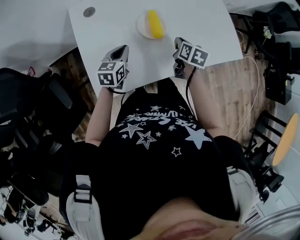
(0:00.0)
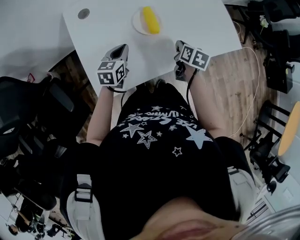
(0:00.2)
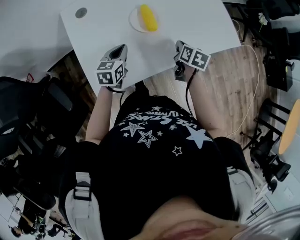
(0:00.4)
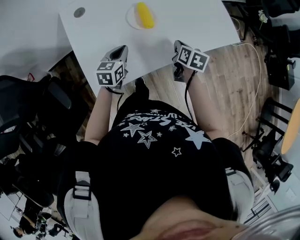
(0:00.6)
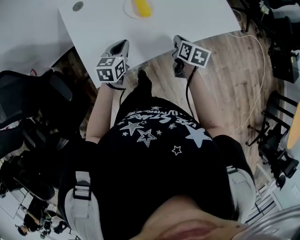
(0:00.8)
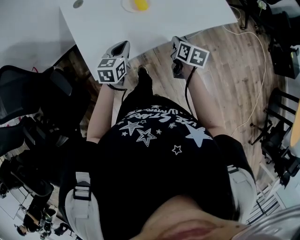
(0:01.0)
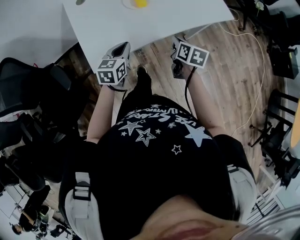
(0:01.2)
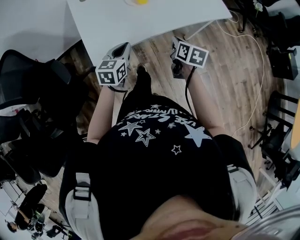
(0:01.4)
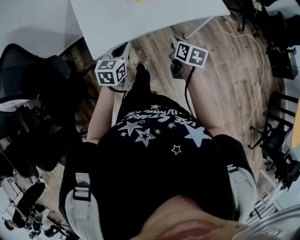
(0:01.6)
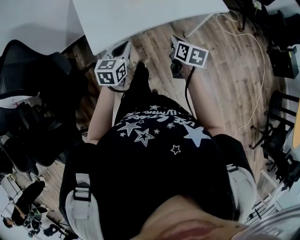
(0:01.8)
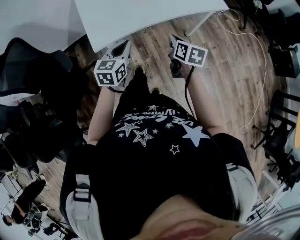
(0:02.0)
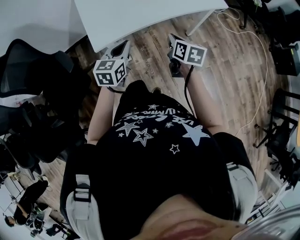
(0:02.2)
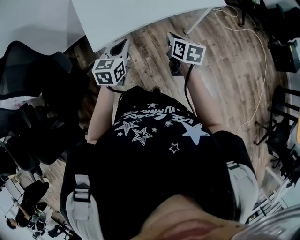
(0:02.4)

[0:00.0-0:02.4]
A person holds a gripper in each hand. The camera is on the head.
0:00.0 to 0:01.2: The left gripper ends up some 20 cm from where it was.
0:01.2 to 0:02.4: The left gripper shifts by some 15 cm.

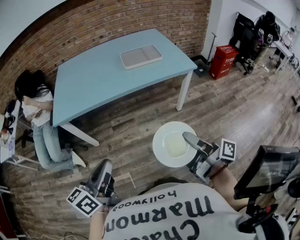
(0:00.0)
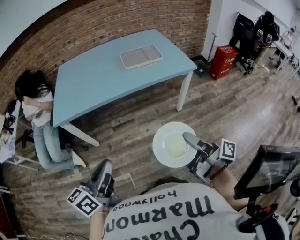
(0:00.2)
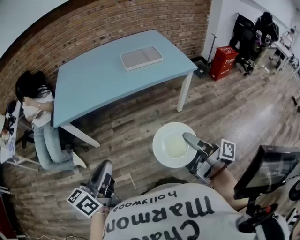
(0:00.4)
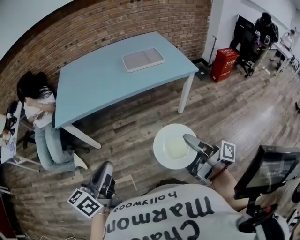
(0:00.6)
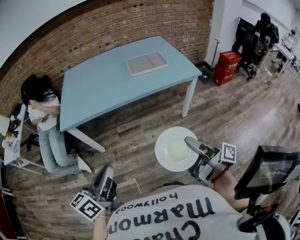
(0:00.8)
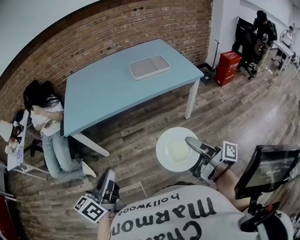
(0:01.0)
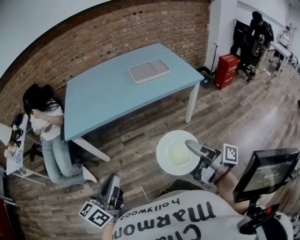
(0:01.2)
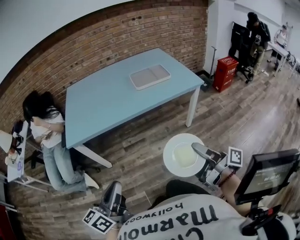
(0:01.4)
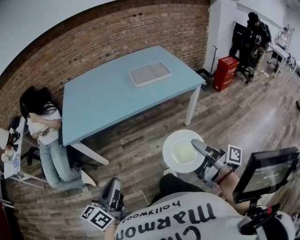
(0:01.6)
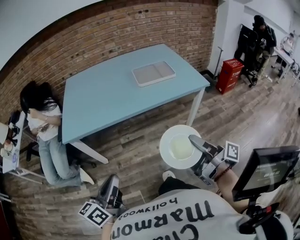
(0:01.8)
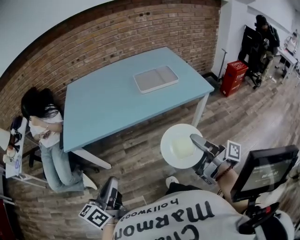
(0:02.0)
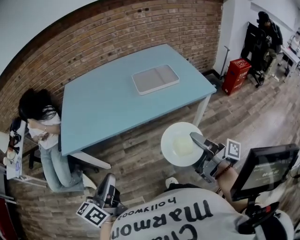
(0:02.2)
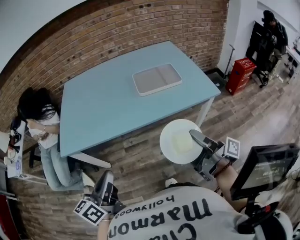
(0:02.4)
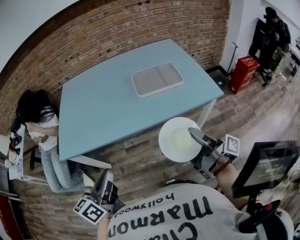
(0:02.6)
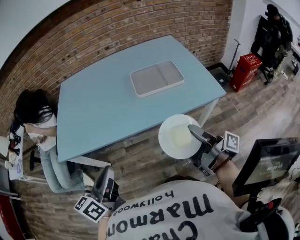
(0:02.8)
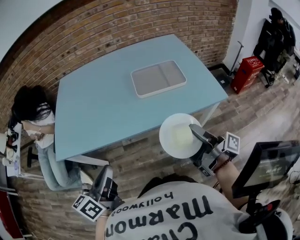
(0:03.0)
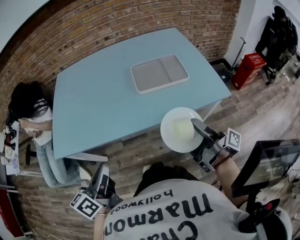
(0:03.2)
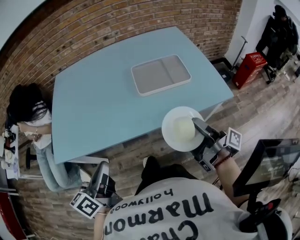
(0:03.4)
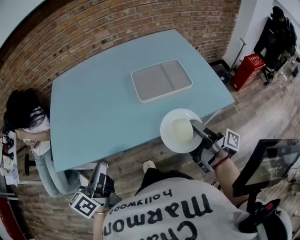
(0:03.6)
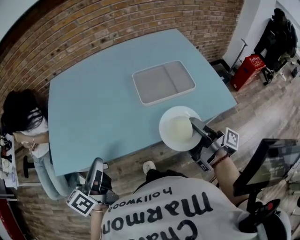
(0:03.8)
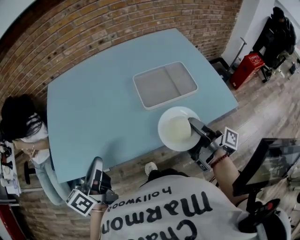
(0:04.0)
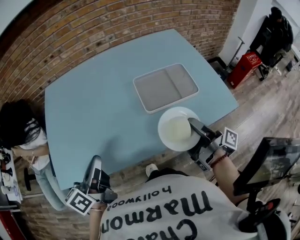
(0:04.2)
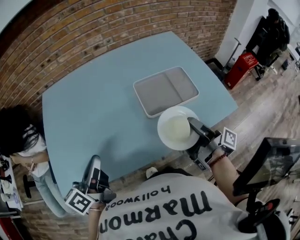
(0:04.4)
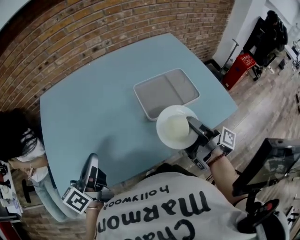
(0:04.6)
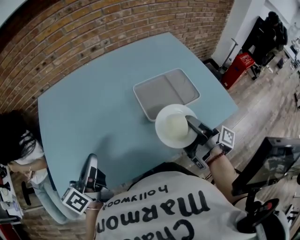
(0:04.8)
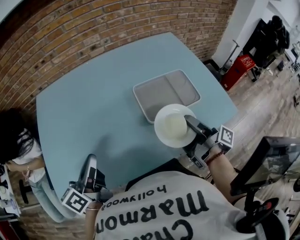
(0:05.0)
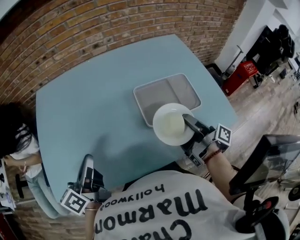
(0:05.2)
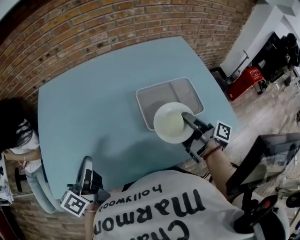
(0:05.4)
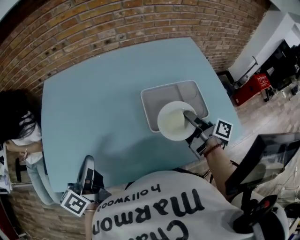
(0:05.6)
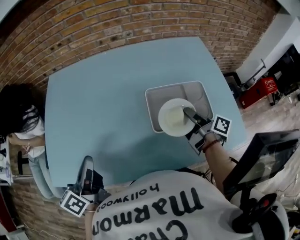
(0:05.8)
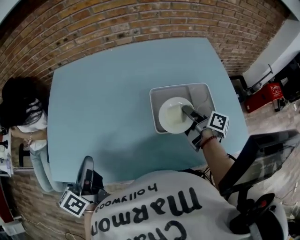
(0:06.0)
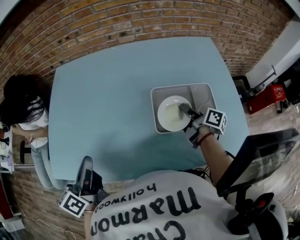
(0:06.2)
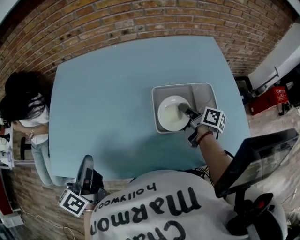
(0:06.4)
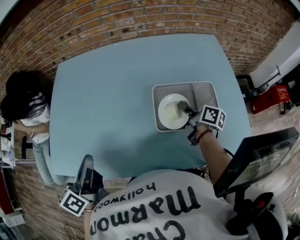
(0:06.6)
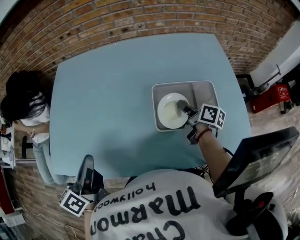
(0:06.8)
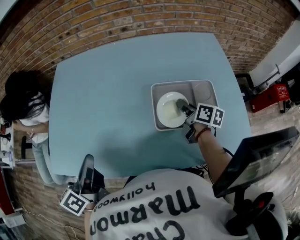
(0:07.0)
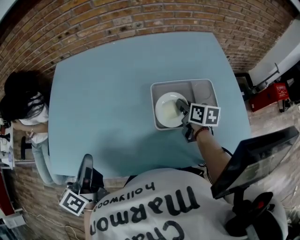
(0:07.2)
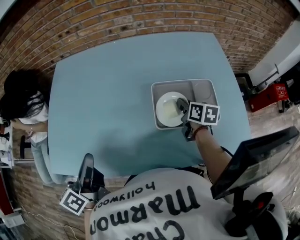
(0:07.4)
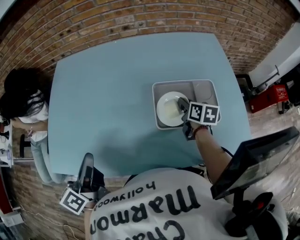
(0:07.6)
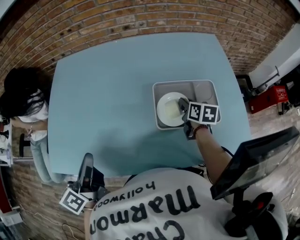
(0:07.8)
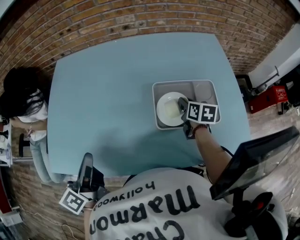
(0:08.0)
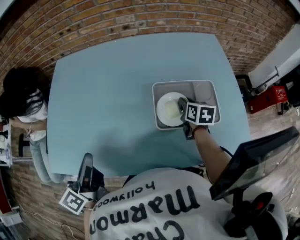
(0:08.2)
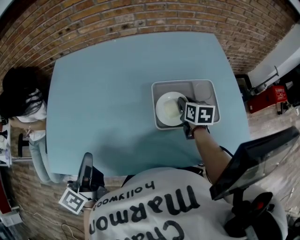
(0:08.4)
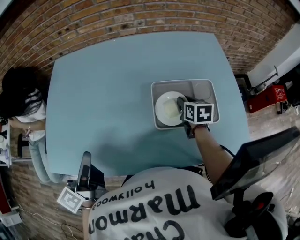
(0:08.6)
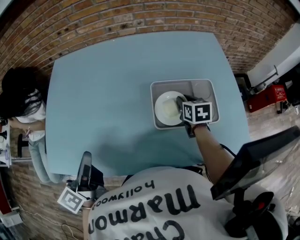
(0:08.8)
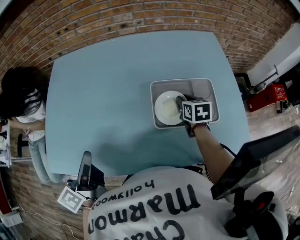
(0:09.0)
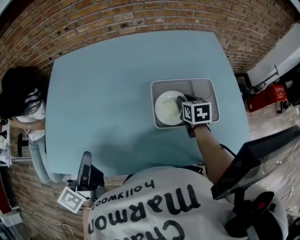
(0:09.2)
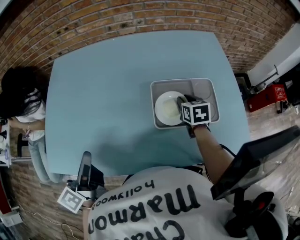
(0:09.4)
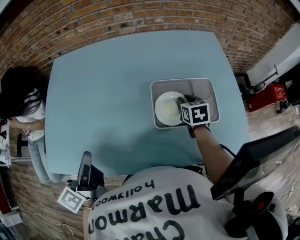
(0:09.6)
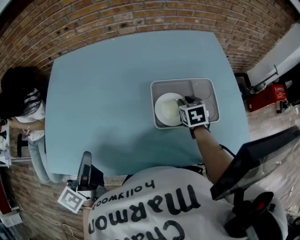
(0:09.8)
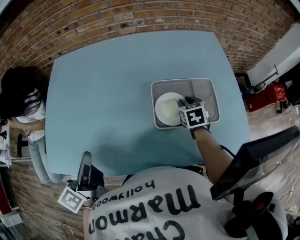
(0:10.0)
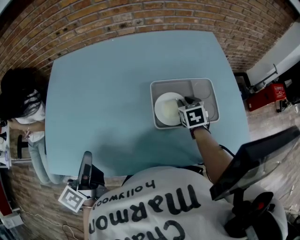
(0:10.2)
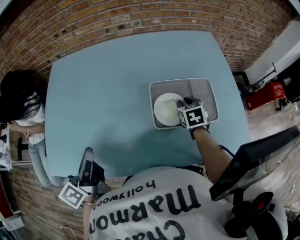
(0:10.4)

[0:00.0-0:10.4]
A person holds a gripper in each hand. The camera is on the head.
0:00.0 to 0:01.4: The left gripper is displaced to the left by roughly 10 cm.
0:01.4 to 0:03.0: Both grippers travel together forward, roughly 30 cm.
0:03.0 to 0:04.4: The left gripper heads forward and to the left, covering roughly 25 cm, while the right gripper is displaced forward by about 20 cm.
0:04.4 to 0:06.0: The right gripper goes approximately 20 cm forward, and turns by some 30 degrees.
0:06.0 to 0:07.4: The right gripper changes place by approximately 5 cm, and rotates about 40 degrees.
0:07.4 to 0:09.0: The right gripper changes its angle by about 20 degrees.
0:09.0 to 0:10.4: The grippers move only a little.

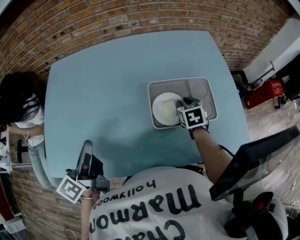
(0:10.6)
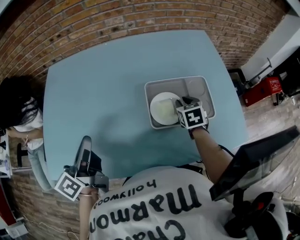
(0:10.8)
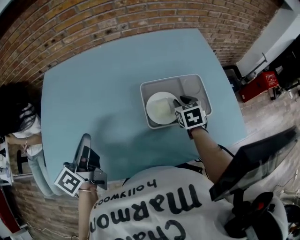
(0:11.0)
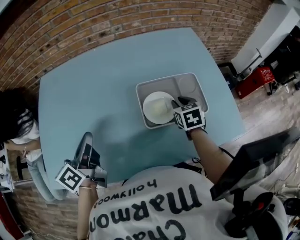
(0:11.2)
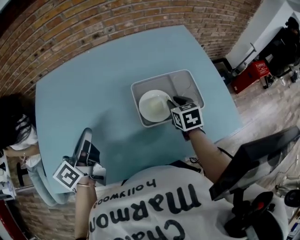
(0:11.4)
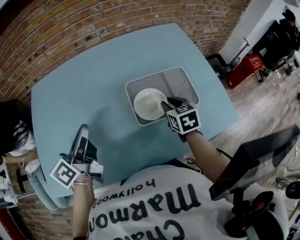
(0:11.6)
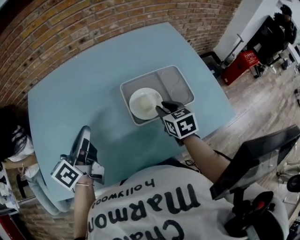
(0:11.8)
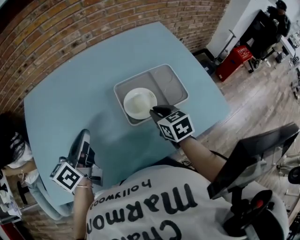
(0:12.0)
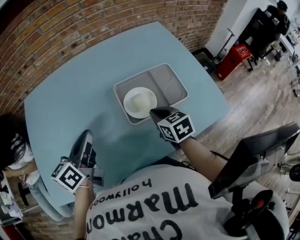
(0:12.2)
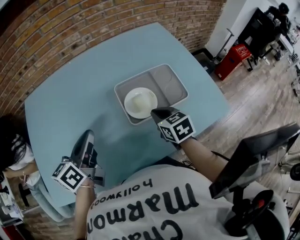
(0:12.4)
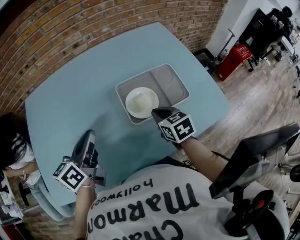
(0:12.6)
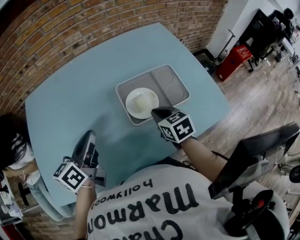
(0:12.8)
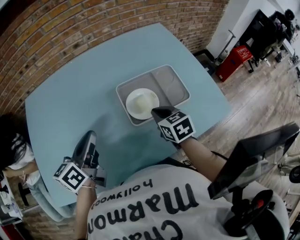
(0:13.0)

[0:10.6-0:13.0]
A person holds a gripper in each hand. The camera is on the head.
0:10.6 to 0:11.8: The left gripper is displaced forward and to the right by about 10 cm, and rotates some 20 degrees. The right gripper goes roughly 5 cm backward.
0:11.8 to 0:13.0: The right gripper closes up.

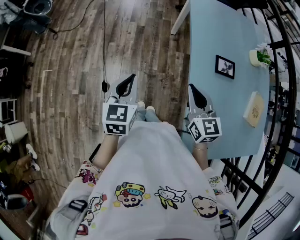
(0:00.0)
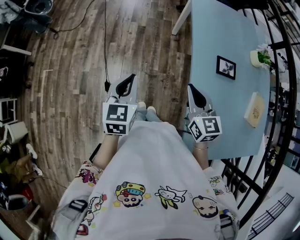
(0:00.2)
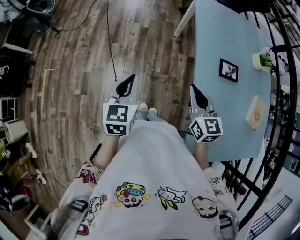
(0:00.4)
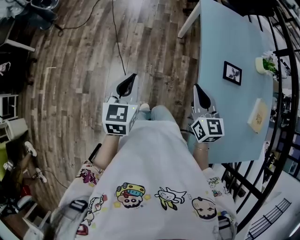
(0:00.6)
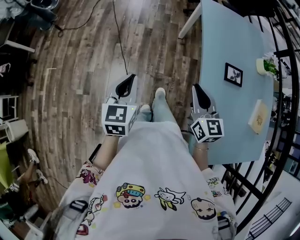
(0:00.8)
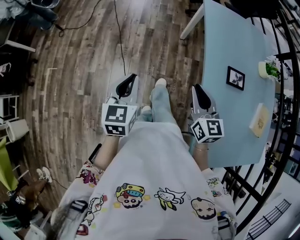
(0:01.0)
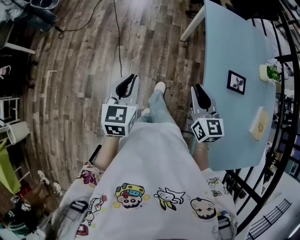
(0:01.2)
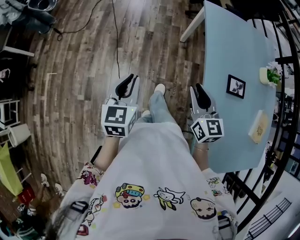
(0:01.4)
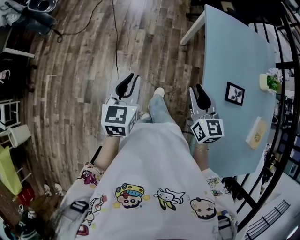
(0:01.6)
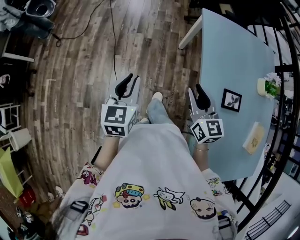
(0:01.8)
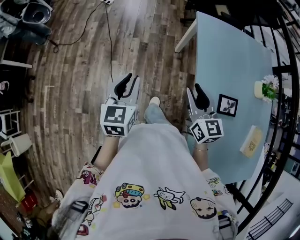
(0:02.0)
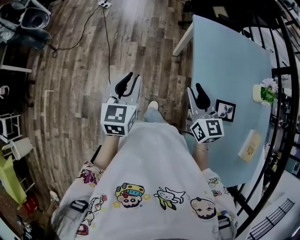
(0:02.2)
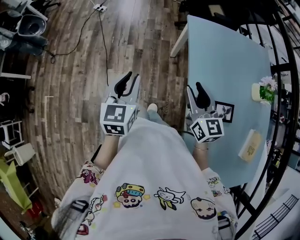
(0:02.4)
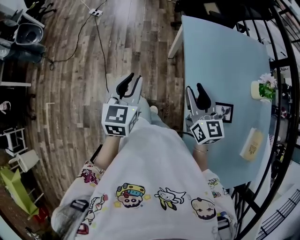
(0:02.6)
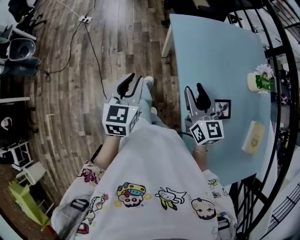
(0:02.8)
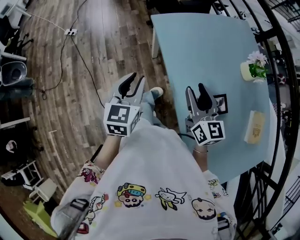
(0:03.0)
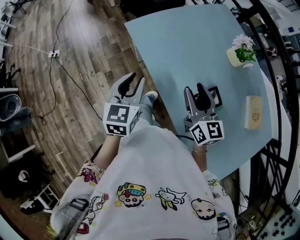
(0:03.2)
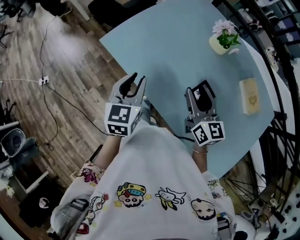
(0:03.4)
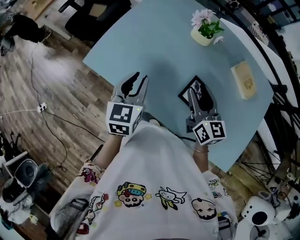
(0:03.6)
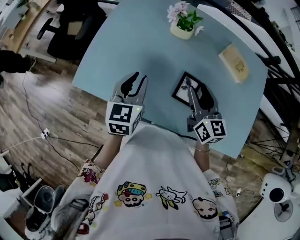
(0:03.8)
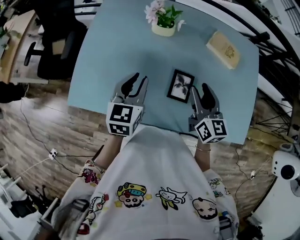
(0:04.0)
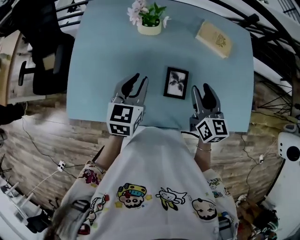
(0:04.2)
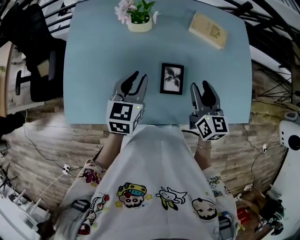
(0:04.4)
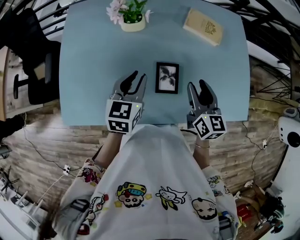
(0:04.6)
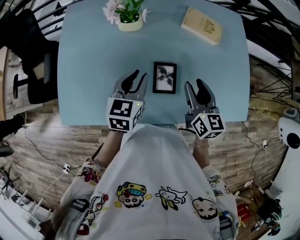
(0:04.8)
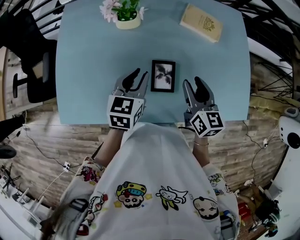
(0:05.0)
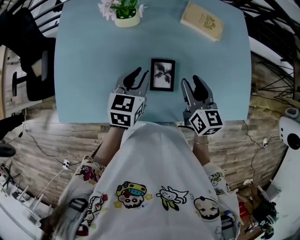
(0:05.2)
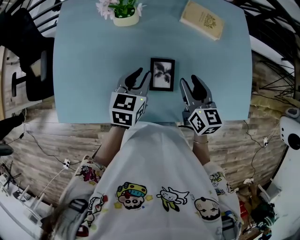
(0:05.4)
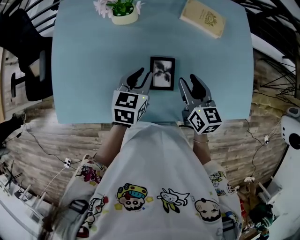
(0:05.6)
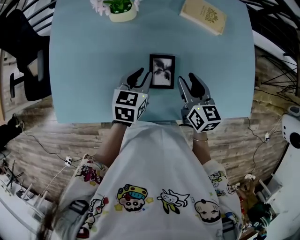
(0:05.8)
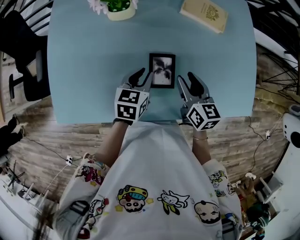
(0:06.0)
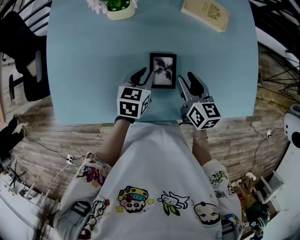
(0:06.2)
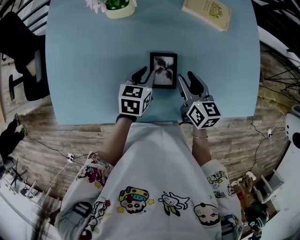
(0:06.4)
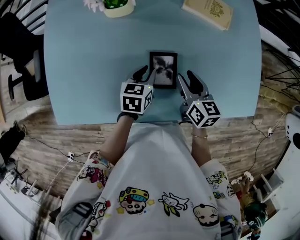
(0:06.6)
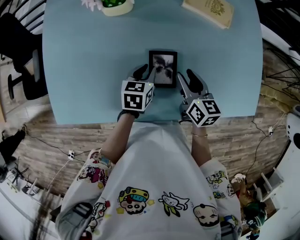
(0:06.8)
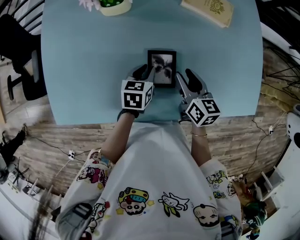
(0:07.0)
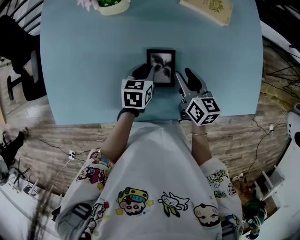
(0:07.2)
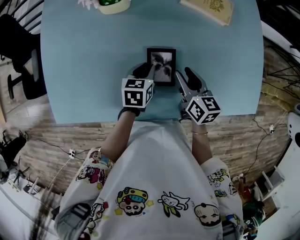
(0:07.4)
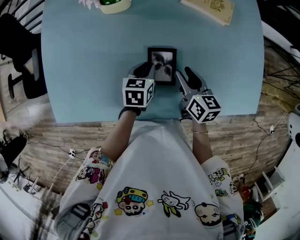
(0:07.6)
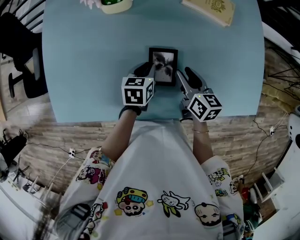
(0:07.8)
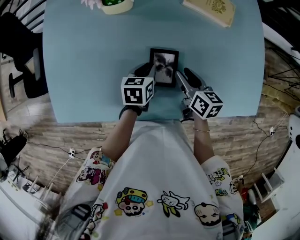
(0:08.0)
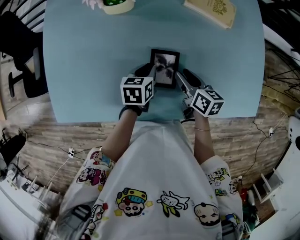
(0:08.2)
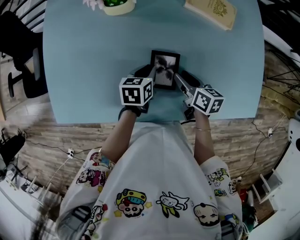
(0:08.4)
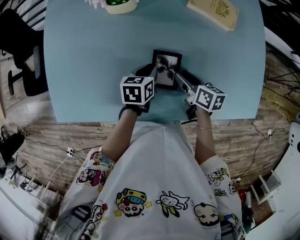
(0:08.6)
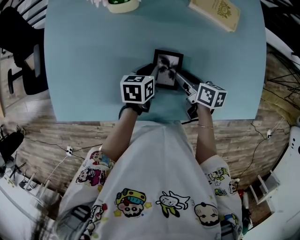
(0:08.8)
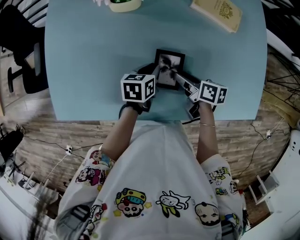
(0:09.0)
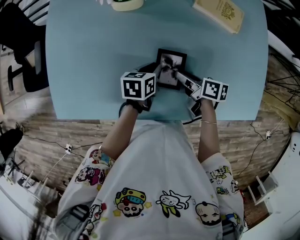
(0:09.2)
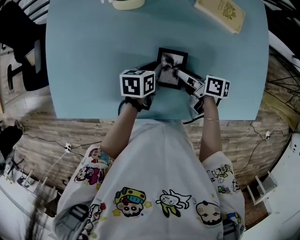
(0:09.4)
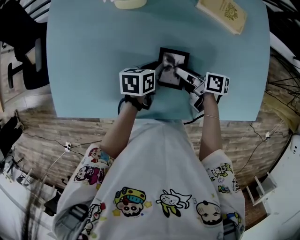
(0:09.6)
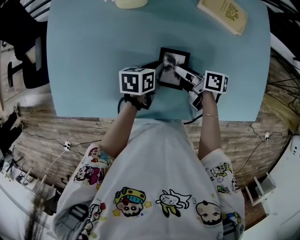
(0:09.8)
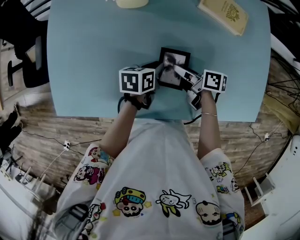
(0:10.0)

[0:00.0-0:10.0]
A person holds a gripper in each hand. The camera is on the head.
0:00.0 to 0:01.4: The left gripper goes roughly 10 cm forward and to the left, while the right gripper moves forward, approximately 10 cm, and opens its fingers.
0:01.4 to 0:02.8: Both grippers move forward and to the right, some 25 cm.
0:02.8 to 0:04.2: The right gripper changes place by approximately 30 cm, and swivels about 80 degrees. The left gripper changes place by some 40 cm, and changes its angle by about 80 degrees.
0:04.2 to 0:05.8: The left gripper is displaced downward and to the right by roughly 15 cm, while the right gripper moves downward, roughly 10 cm.
0:05.8 to 0:07.2: The left gripper travels downward by roughly 10 cm. Meanwhile the right gripper shifts some 5 cm downward.
0:07.2 to 0:08.6: The right gripper ends up approximately 5 cm from where it was, and turns by roughly 20 degrees.
0:08.6 to 0:10.0: The right gripper goes about 5 cm to the left, and rotates roughly 20 degrees.
